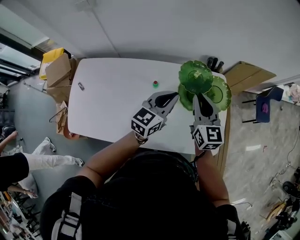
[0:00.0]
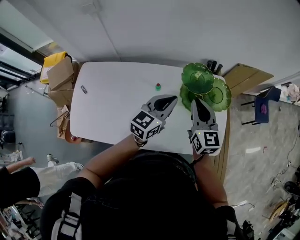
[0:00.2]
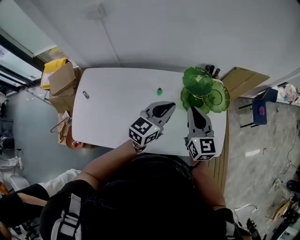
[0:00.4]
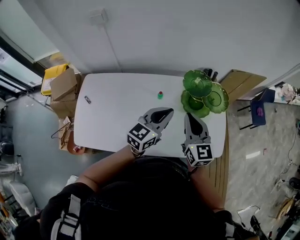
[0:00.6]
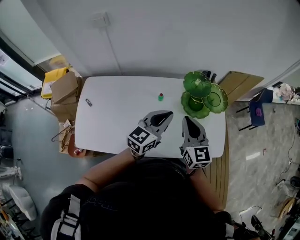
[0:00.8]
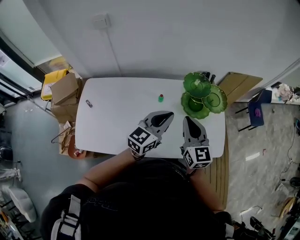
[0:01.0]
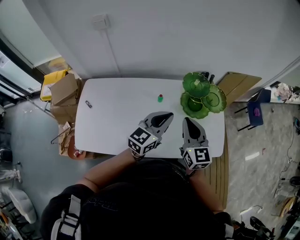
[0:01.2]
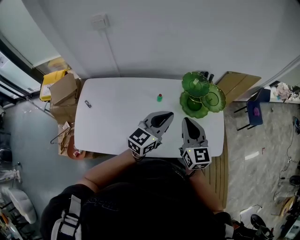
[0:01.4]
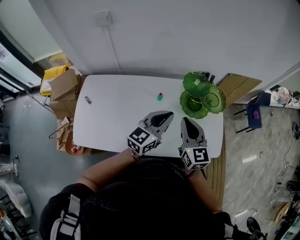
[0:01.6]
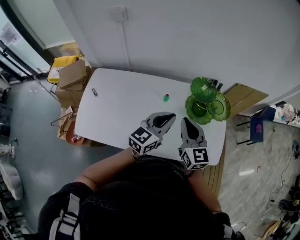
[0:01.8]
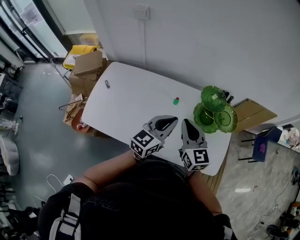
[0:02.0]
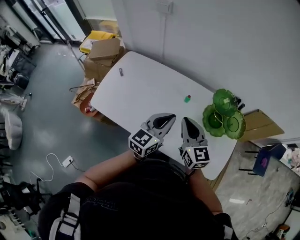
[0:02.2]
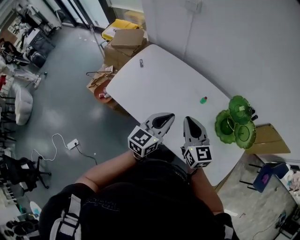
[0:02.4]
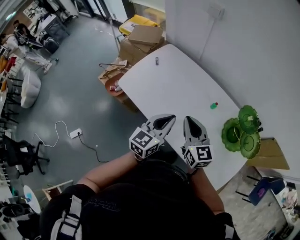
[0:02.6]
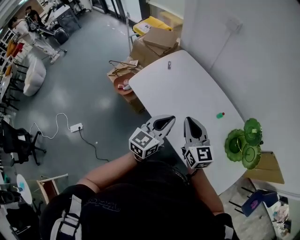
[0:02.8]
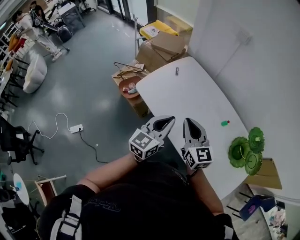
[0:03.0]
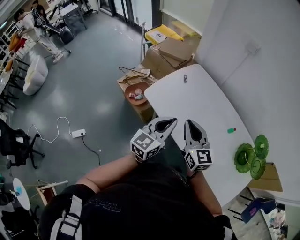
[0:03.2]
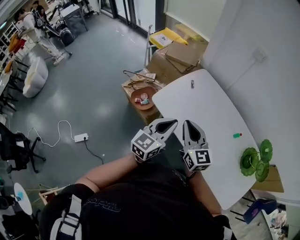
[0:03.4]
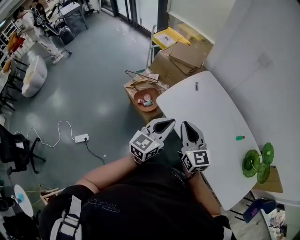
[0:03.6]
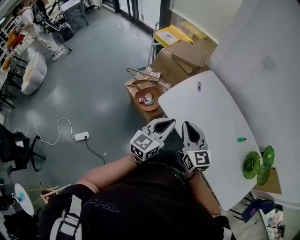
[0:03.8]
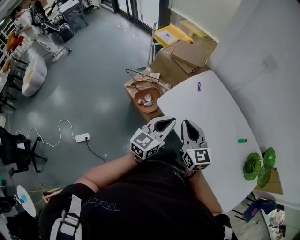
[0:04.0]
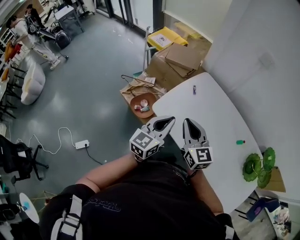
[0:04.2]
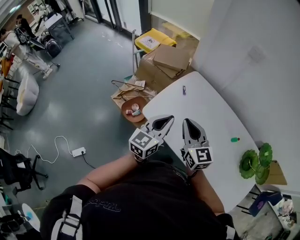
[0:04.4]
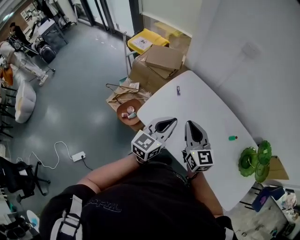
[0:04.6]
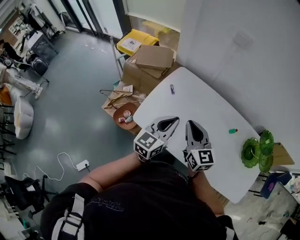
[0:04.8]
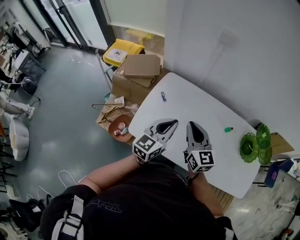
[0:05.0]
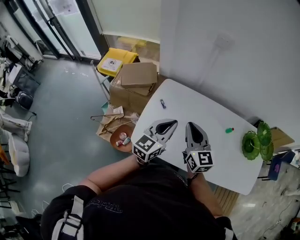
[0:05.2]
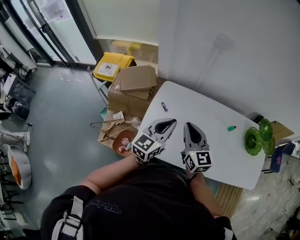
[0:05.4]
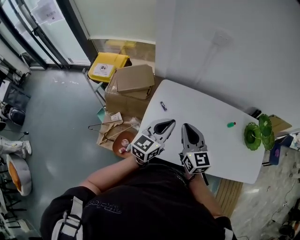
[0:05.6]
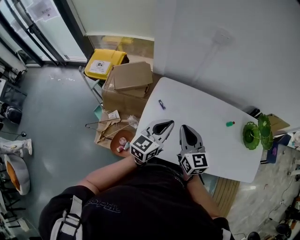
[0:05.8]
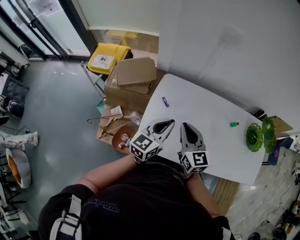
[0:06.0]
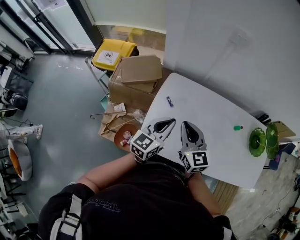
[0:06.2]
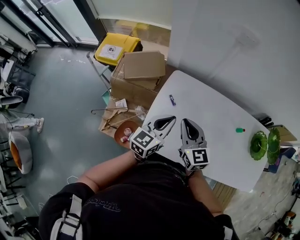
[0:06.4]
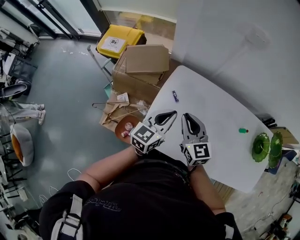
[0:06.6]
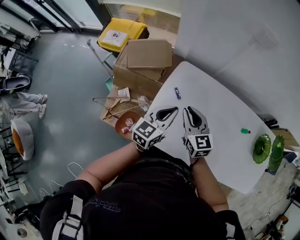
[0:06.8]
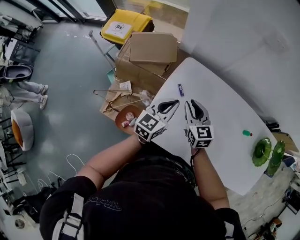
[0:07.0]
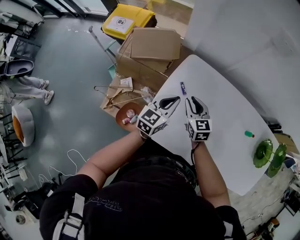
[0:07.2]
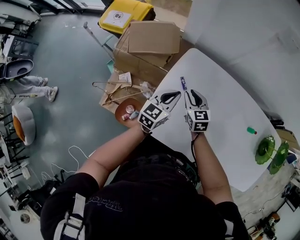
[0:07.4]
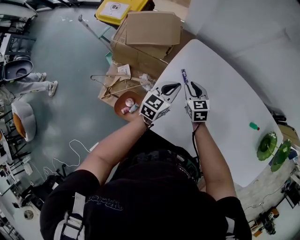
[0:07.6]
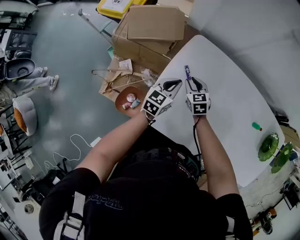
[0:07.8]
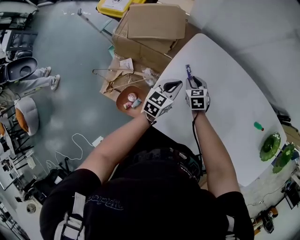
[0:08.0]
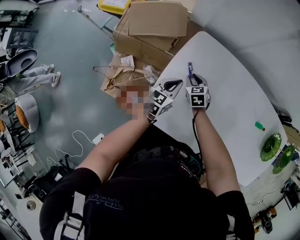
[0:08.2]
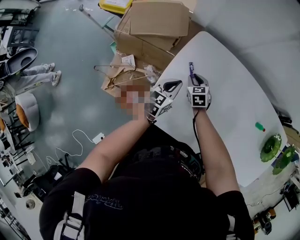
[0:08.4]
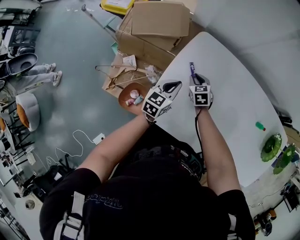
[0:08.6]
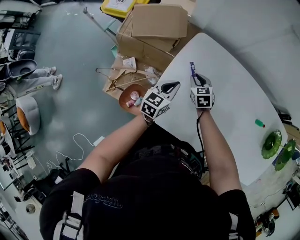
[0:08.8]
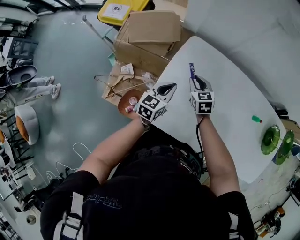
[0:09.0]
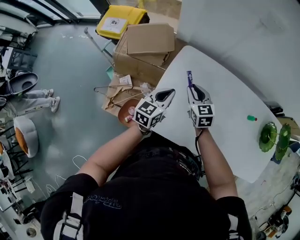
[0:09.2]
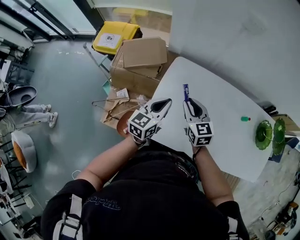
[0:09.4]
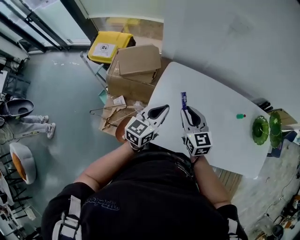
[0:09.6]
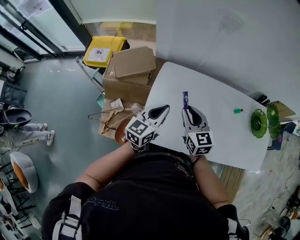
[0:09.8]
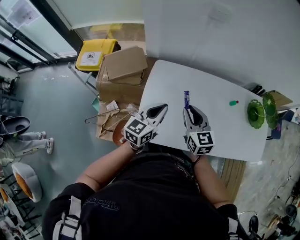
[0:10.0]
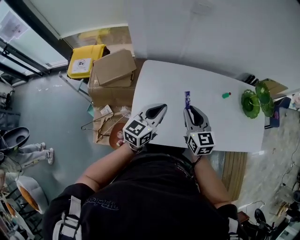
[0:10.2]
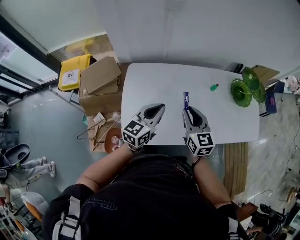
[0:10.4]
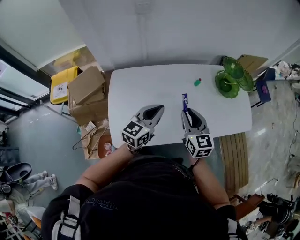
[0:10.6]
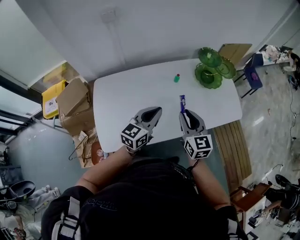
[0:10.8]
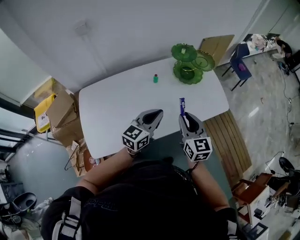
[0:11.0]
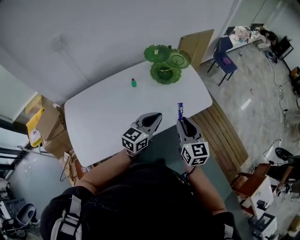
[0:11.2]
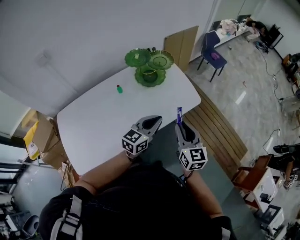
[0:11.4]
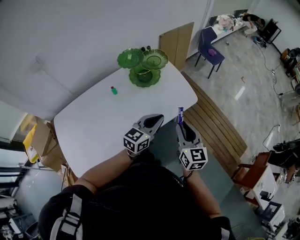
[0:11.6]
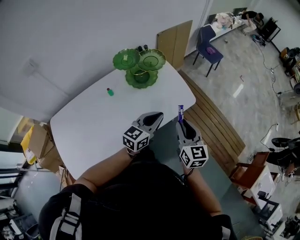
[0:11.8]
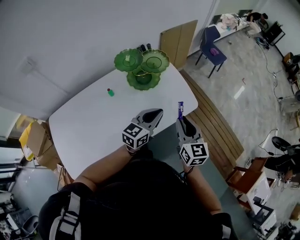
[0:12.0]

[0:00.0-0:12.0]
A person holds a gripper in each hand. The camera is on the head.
0:00.0 to 0:01.6: The left gripper heads backward and upward, covering approximately 15 cm; the right gripper travels backward and to the left by some 15 cm.
0:01.6 to 0:03.0: The left gripper ends up about 30 cm from where it was, and turns by roughly 50 degrees, while the right gripper moves approximately 30 cm, and swivels roughly 50 degrees.
0:03.0 to 0:04.4: The right gripper travels to the left and forward by roughly 20 cm; the left gripper travels forward and to the left by roughly 20 cm.
0:04.4 to 0:06.0: The left gripper shifts by roughly 20 cm, and rotates approximately 30 degrees; the right gripper moves about 15 cm, and changes its angle by some 30 degrees.
0:06.0 to 0:07.6: The two grippers go some 30 cm downward and forward. The right gripper turns by approximately 30 degrees.
0:07.6 to 0:09.0: The right gripper reaches roughly 10 cm downward, then returns.
0:09.0 to 0:10.4: The right gripper moves some 35 cm, and rotates approximately 40 degrees; the left gripper travels upward by some 20 cm, and changes its angle by about 30 degrees.
0:10.4 to 0:12.0: The two grippers travel together, some 60 cm. The right gripper rotates roughly 40 degrees. The left gripper swivels approximately 40 degrees.

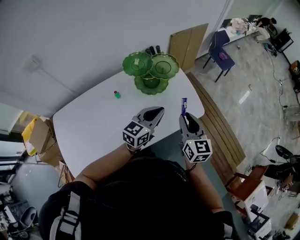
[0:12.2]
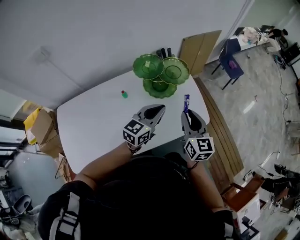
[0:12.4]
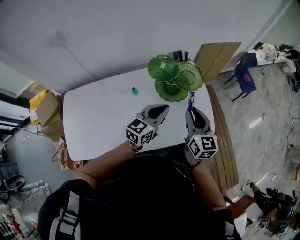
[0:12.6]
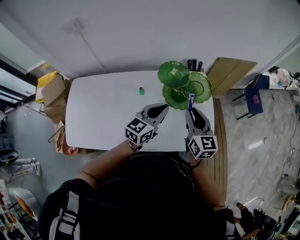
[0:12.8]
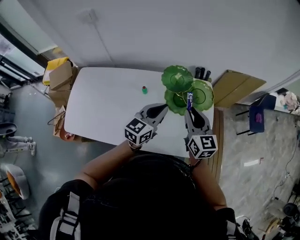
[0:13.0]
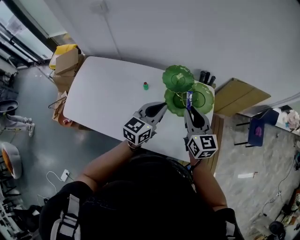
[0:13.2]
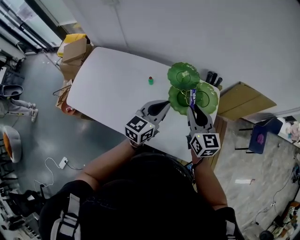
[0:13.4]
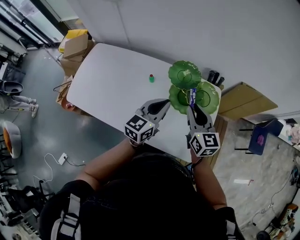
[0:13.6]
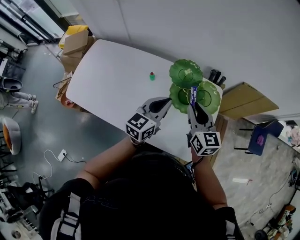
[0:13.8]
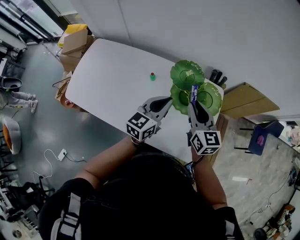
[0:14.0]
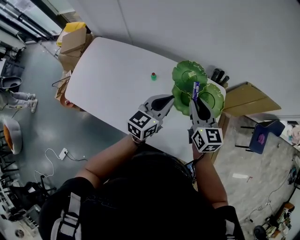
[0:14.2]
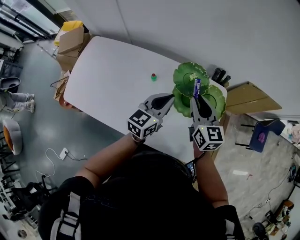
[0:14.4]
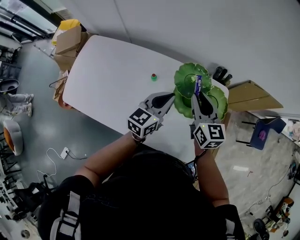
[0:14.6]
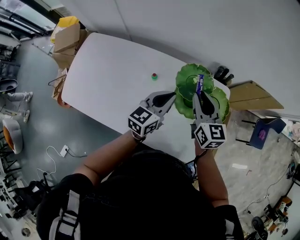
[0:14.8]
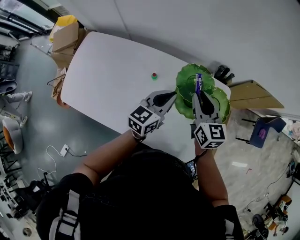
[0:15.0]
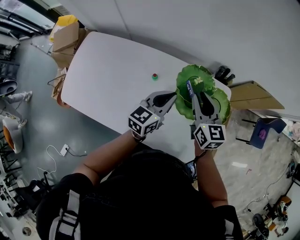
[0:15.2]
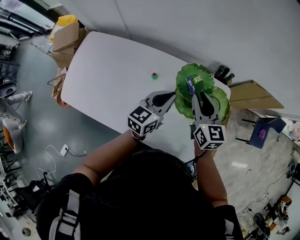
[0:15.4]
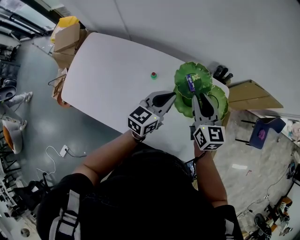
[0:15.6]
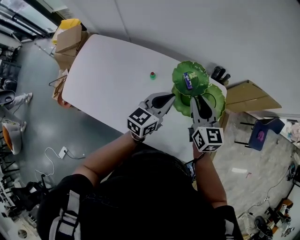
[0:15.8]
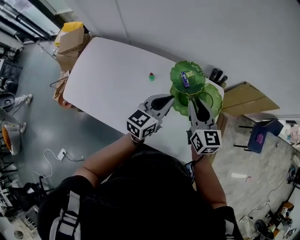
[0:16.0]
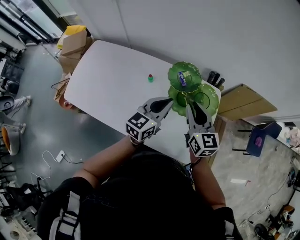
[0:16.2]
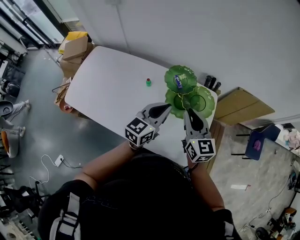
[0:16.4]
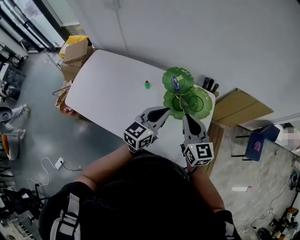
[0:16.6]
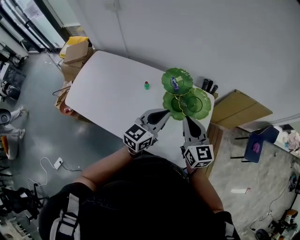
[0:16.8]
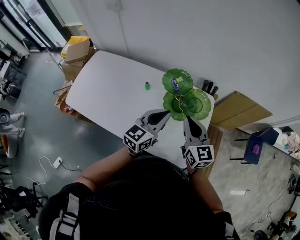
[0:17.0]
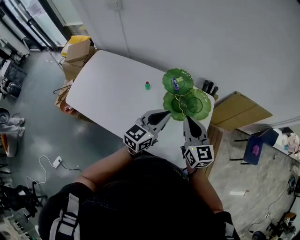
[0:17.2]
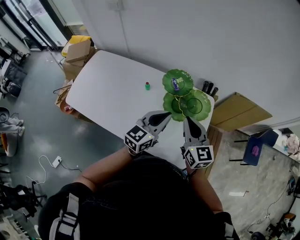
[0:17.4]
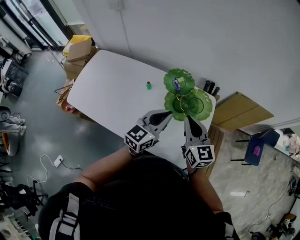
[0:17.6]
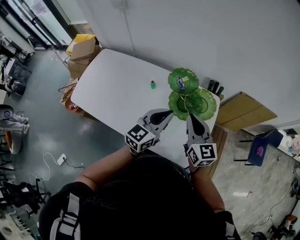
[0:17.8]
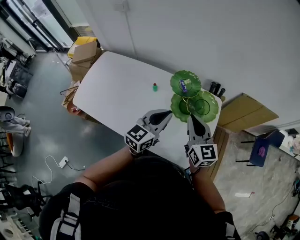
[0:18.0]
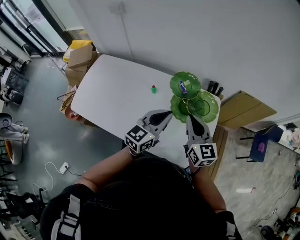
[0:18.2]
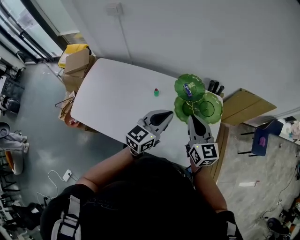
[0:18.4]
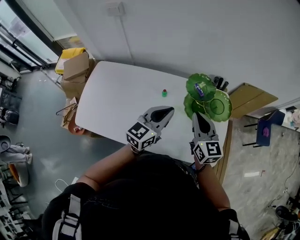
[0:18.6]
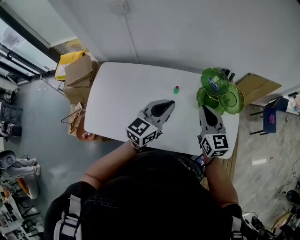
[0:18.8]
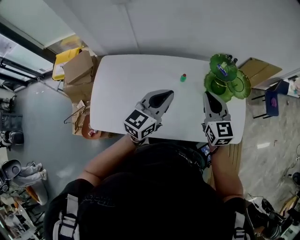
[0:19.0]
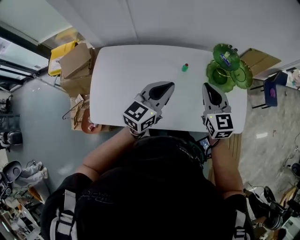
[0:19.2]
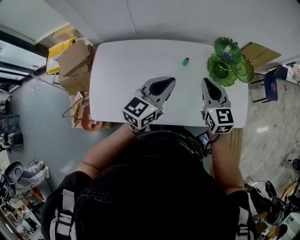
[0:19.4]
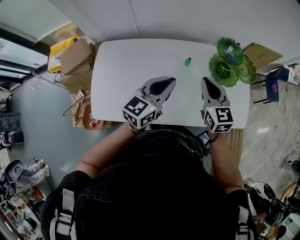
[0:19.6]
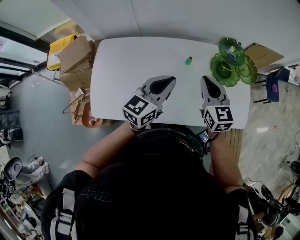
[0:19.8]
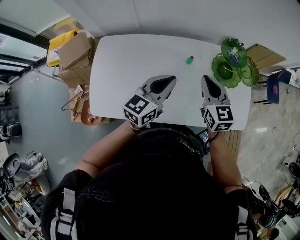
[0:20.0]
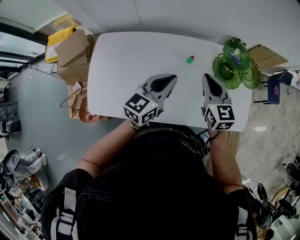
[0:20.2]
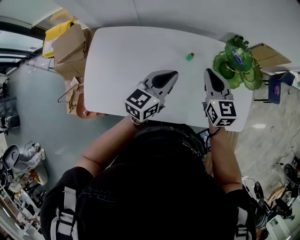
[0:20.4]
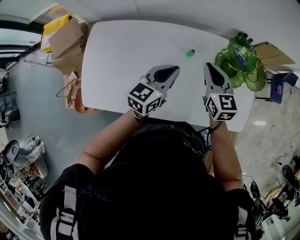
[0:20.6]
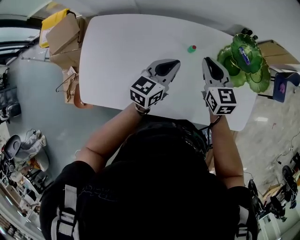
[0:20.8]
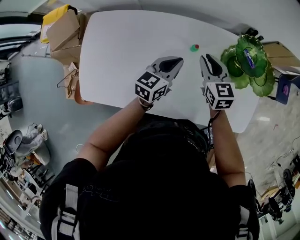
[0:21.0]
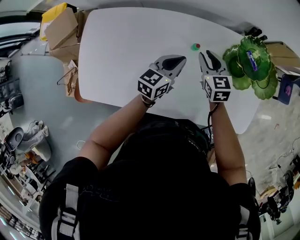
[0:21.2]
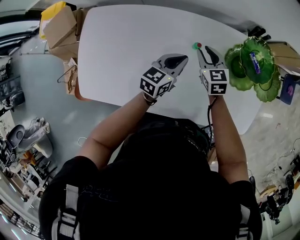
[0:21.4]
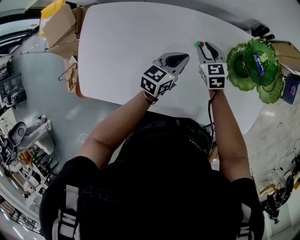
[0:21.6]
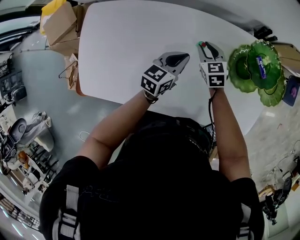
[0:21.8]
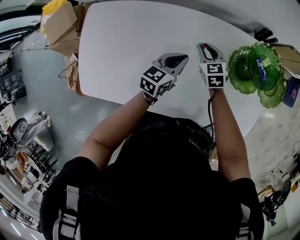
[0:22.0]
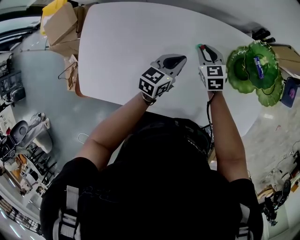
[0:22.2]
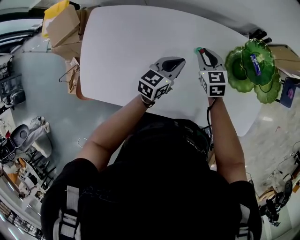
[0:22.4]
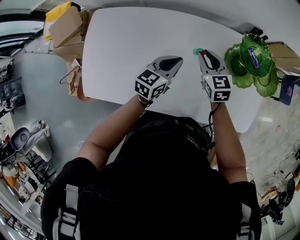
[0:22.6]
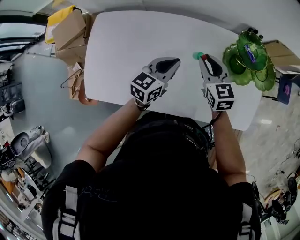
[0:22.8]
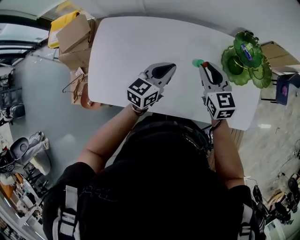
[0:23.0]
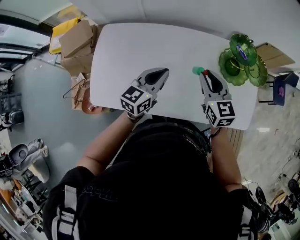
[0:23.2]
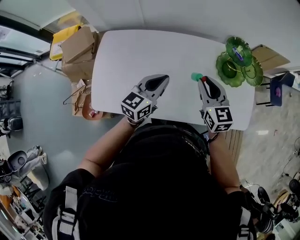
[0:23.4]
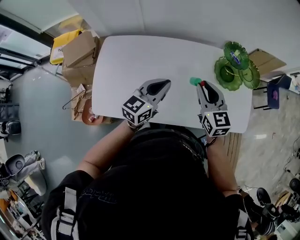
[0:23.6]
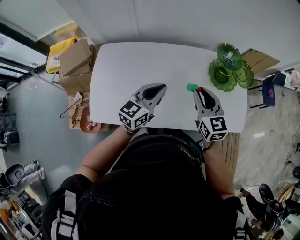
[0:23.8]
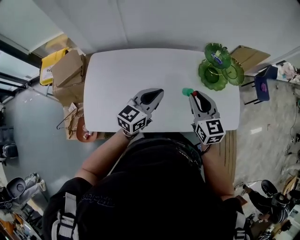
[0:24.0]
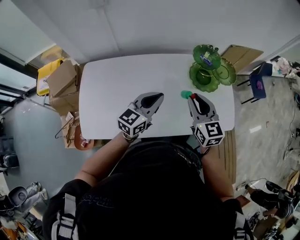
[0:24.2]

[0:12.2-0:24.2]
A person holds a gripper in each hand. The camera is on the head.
0:12.2 to 0:13.8: The left gripper ends up roughly 15 cm from where it was, and turns by roughly 50 degrees, while the right gripper shifts by some 25 cm, and changes its angle by about 50 degrees.
0:13.8 to 0:15.2: The left gripper goes about 10 cm forward and downward; the right gripper moves forward, some 10 cm.
0:15.2 to 0:16.6: The right gripper moves backward and to the right, roughly 15 cm. Meanwhile the left gripper goes roughly 15 cm backward, upward and to the right.
0:16.6 to 0:18.2: There are only small adjustments of the grippers.
0:18.2 to 0:19.8: The two grippers go approximately 30 cm to the left. The right gripper turns by roughly 20 degrees.
0:19.8 to 0:21.2: The grippers both shift downward and forward by some 25 cm.
0:21.2 to 0:22.6: The right gripper goes downward and returns, approximately 10 cm each way.
0:22.6 to 0:24.2: The left gripper heads upward and backward, covering roughly 20 cm, and swivels approximately 20 degrees. Meanwhile the right gripper goes roughly 25 cm backward and upward, and changes its angle by some 20 degrees.
